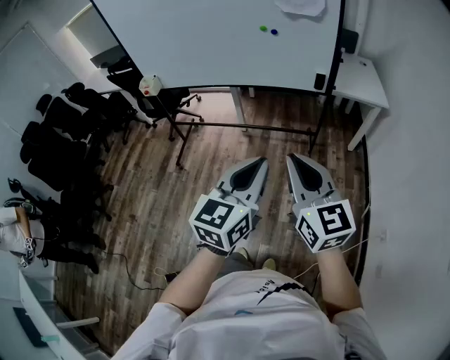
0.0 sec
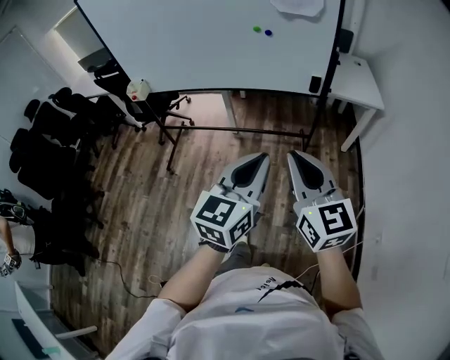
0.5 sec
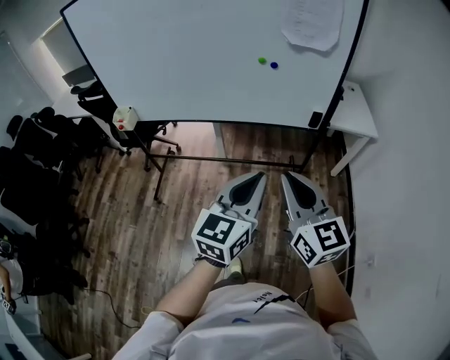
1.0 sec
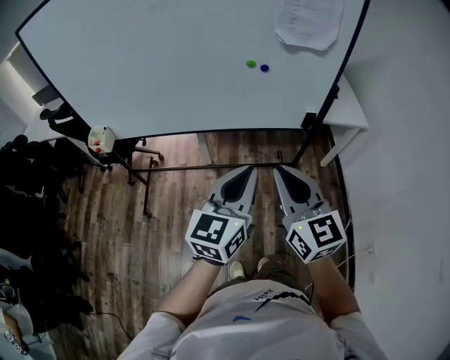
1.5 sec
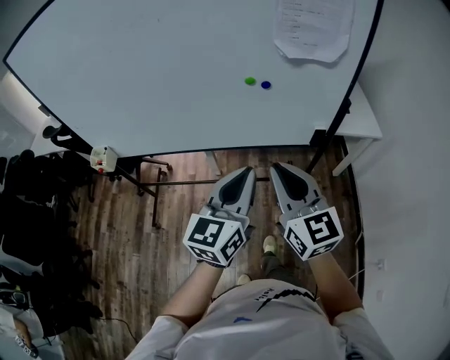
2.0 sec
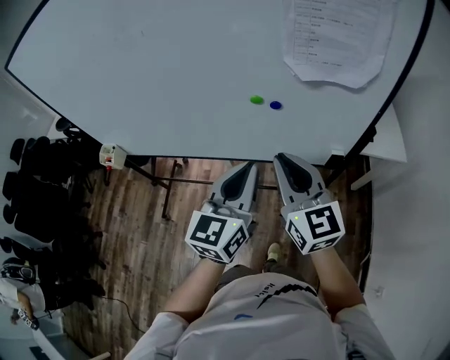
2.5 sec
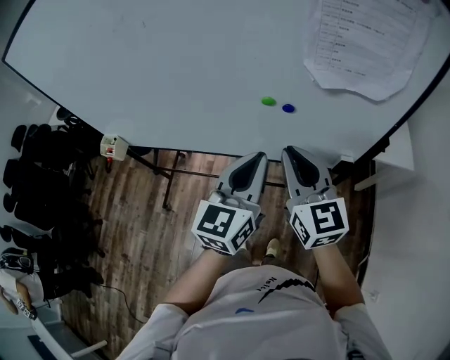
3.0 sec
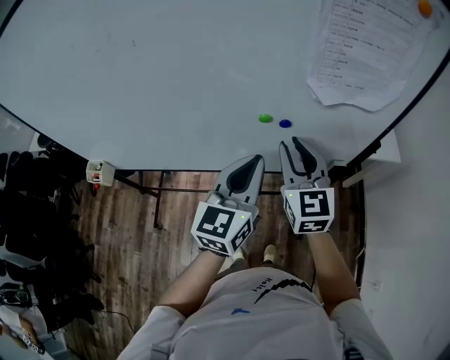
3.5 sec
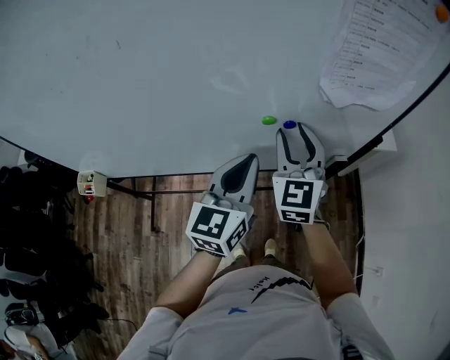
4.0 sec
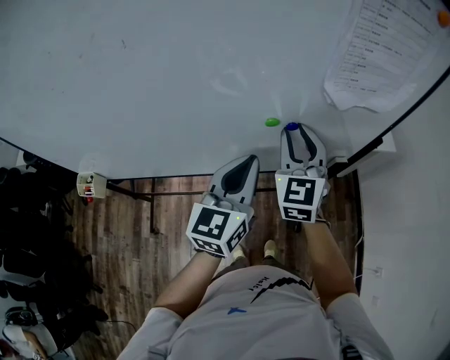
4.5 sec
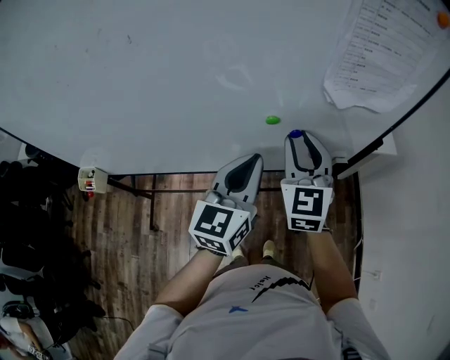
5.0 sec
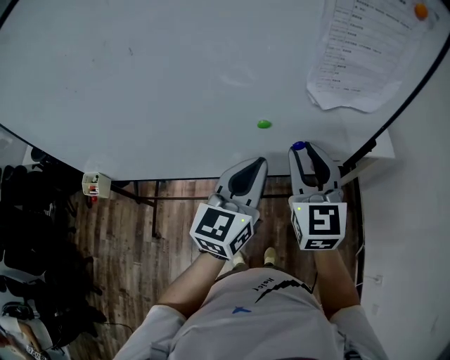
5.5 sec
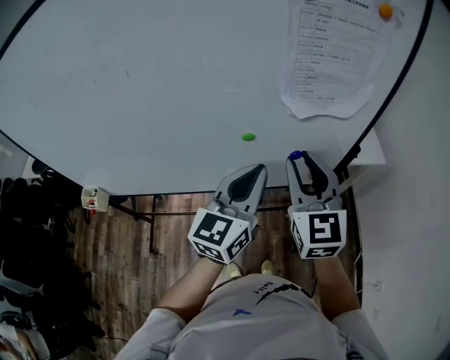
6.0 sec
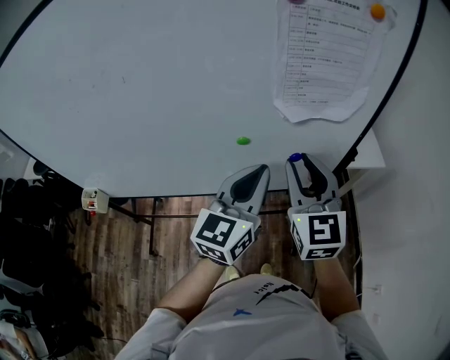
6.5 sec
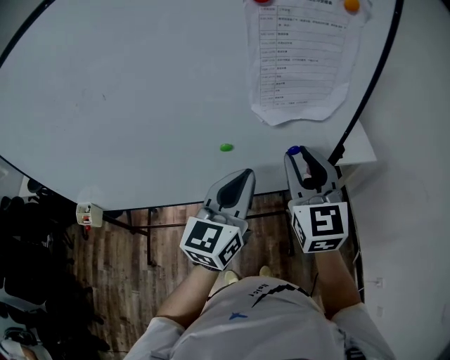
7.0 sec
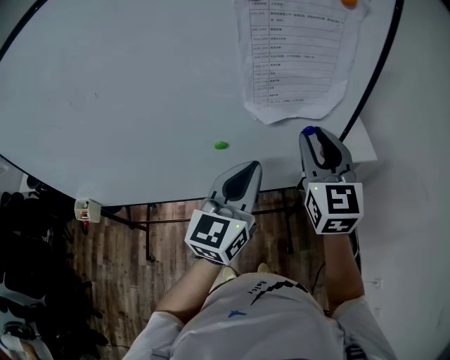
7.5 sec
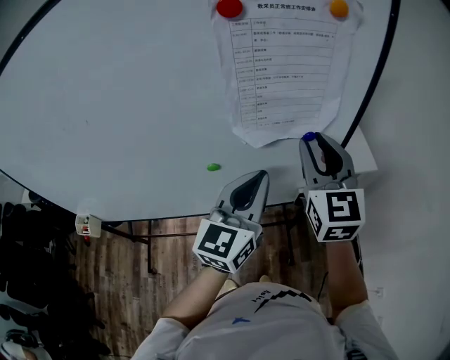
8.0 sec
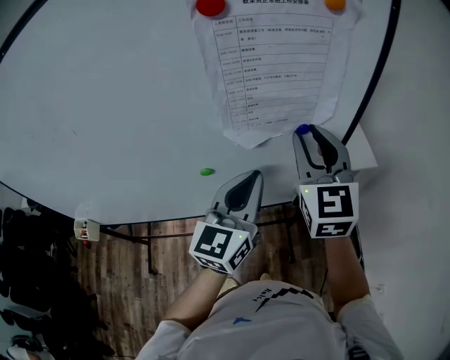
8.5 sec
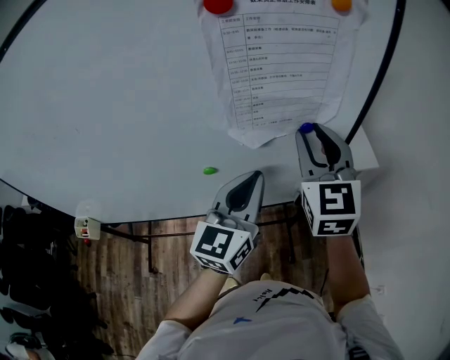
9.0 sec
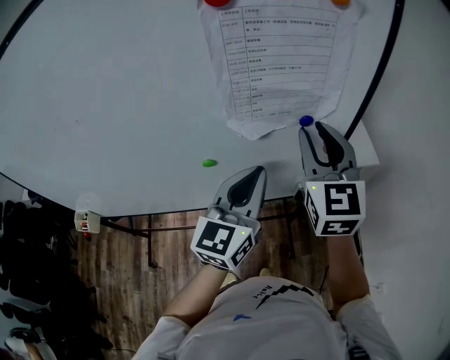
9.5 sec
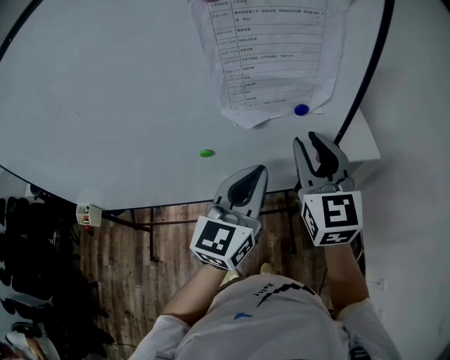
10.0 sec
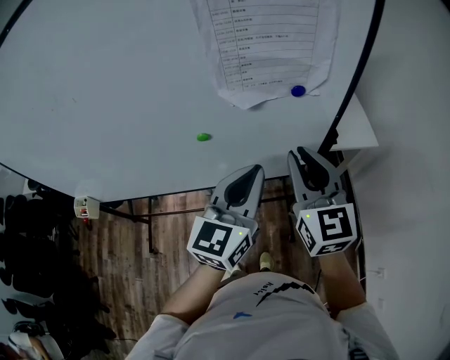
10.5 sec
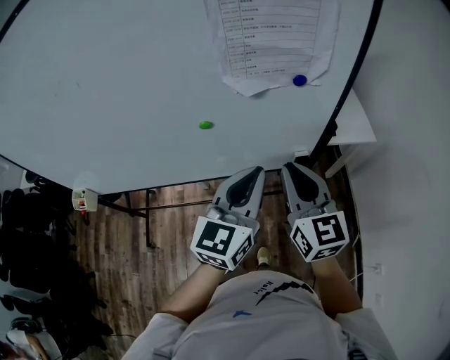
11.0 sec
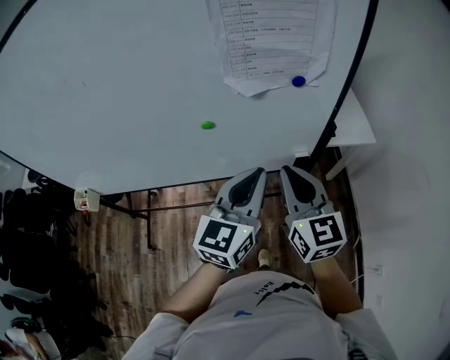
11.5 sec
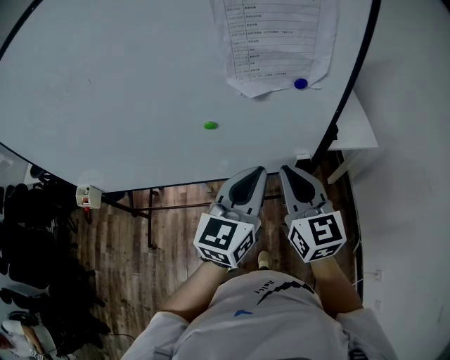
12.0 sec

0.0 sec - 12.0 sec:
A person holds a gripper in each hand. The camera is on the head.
0.0 sec - 2.0 sec: The two grippers go some 40 cm forward.
2.0 sec - 4.0 sec: The two grippers go approximately 25 cm forward. The right gripper turns by roughly 30 degrees, and opens its fingers.
4.0 sec - 6.0 sec: The left gripper is displaced to the right and upward by roughly 10 cm, while the right gripper heads upward, backward and to the right, covering about 15 cm.
6.0 sec - 8.0 sec: The right gripper is displaced to the right, forward and upward by about 15 cm. Meanwhile the left gripper shifts approximately 10 cm to the right and forward.
8.0 sec - 10.0 sec: The grippers make only small movements.
10.0 sec - 12.0 sec: The right gripper shifts approximately 15 cm backward and downward, and closes; the left gripper goes some 5 cm backward.

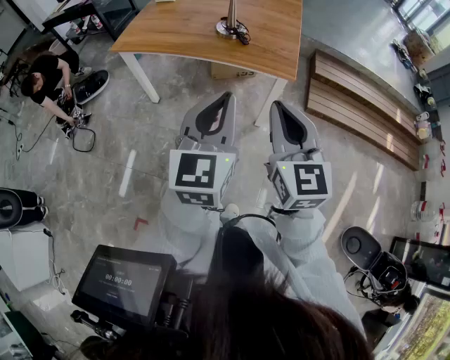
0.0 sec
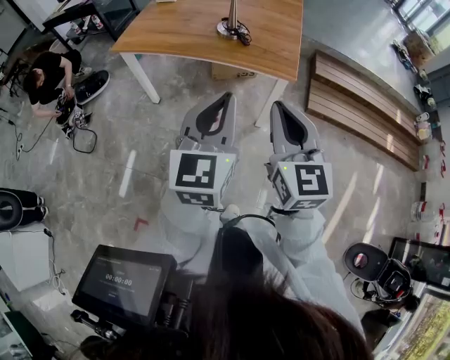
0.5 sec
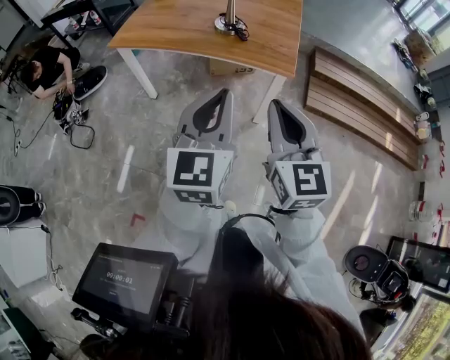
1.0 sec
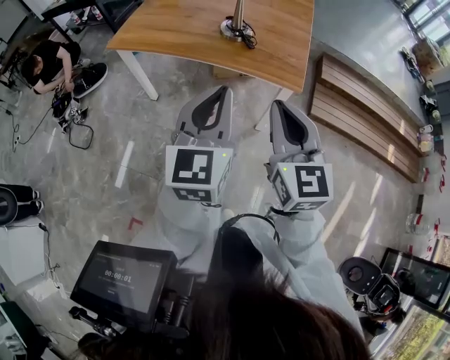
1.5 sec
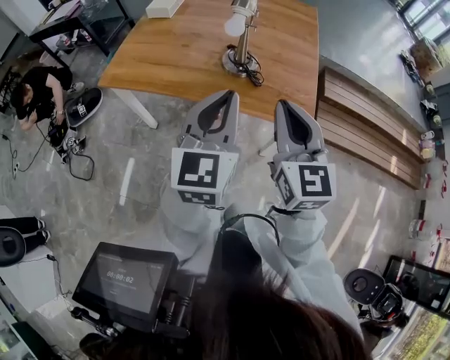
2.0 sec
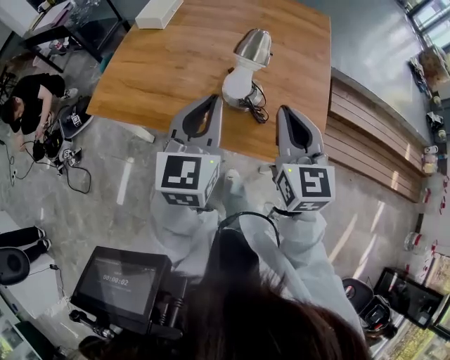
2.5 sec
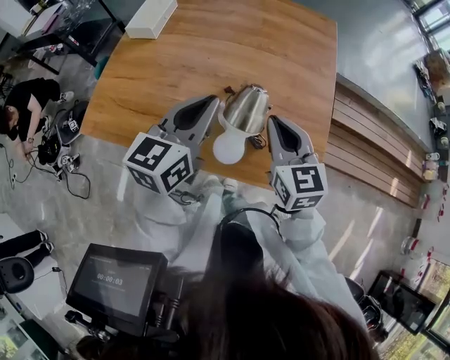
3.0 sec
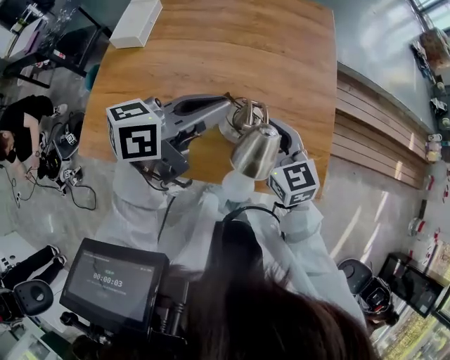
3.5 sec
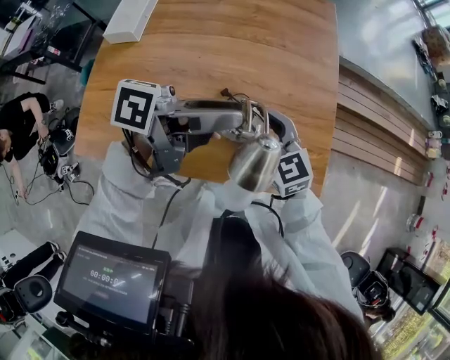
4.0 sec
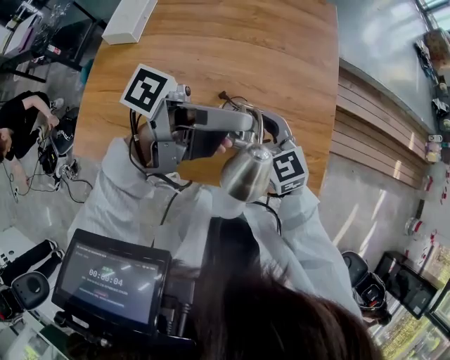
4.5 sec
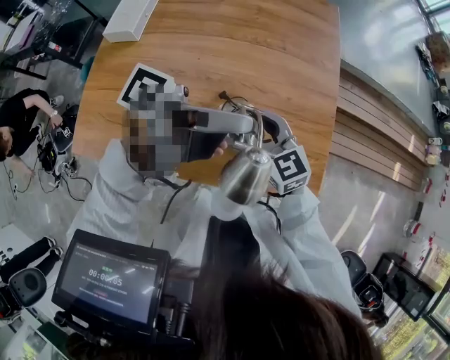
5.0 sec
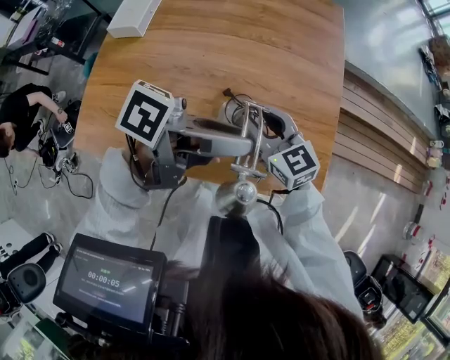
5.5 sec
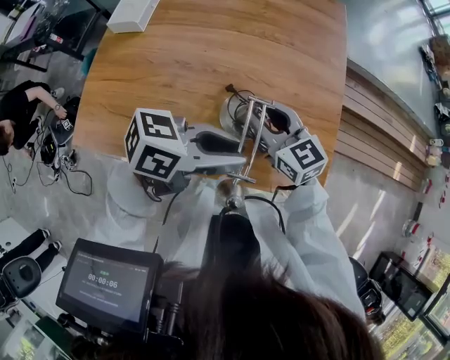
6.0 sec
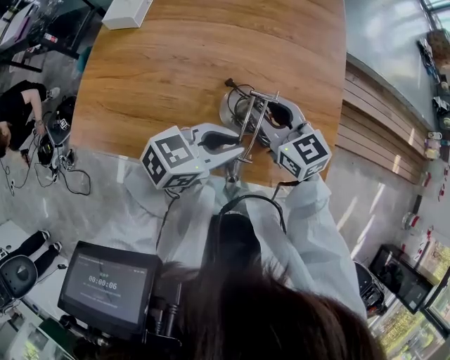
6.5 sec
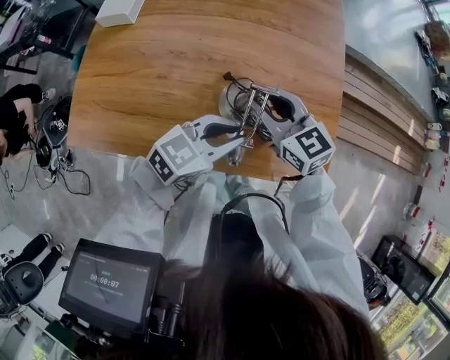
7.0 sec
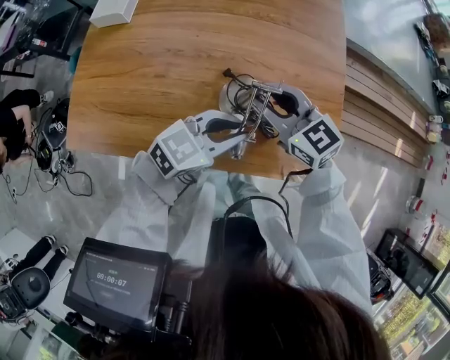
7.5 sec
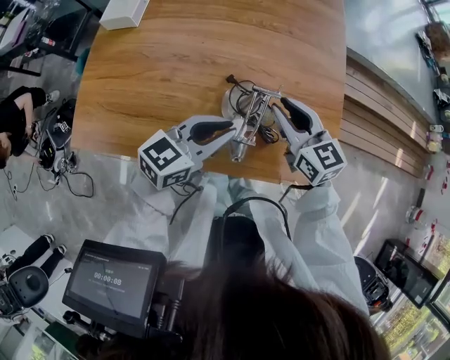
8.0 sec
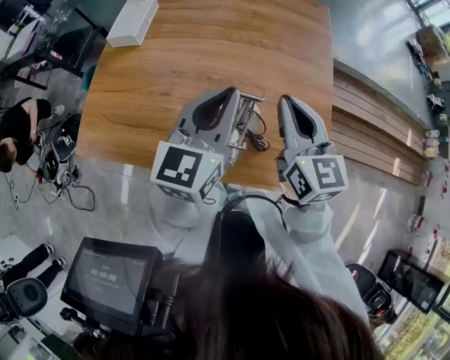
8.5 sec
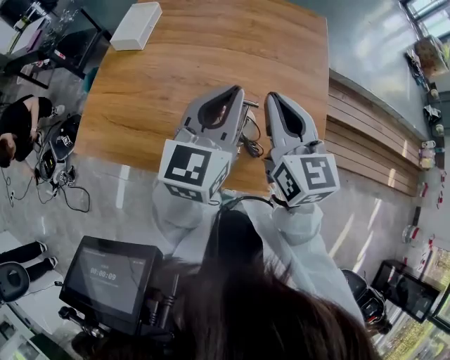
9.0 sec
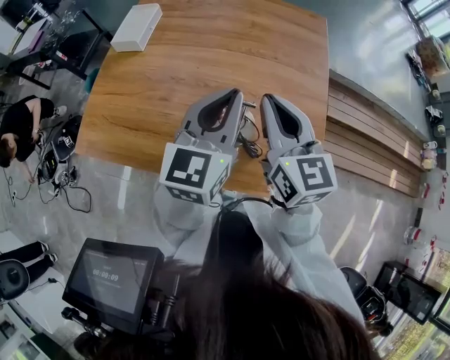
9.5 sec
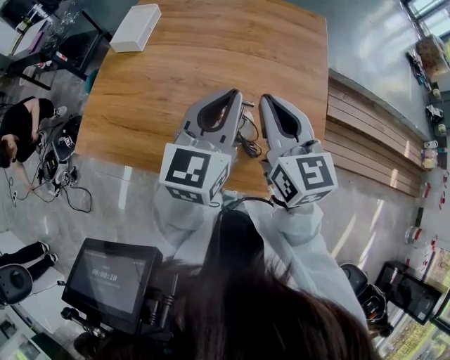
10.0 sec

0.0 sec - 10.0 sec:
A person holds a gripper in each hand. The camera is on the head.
0.0 sec - 2.0 sec: Both grippers move forward, about 30 cm.
2.0 sec - 4.0 sec: The left gripper ends up about 35 cm from where it was, swivels about 90 degrees, and opens its fingers; the right gripper changes place by approximately 40 cm, turns by some 20 degrees, and opens its fingers.
4.0 sec - 6.0 sec: The left gripper moves roughly 10 cm, changes its angle by approximately 30 degrees, and closes up.
6.0 sec - 8.0 sec: The right gripper ends up approximately 5 cm from where it was. The left gripper heads downward, covering some 5 cm, and swivels some 30 degrees.
8.0 sec - 10.0 sec: The left gripper shifts approximately 15 cm upward and forward, and changes its angle by approximately 40 degrees. The right gripper goes some 15 cm upward, and closes its fingers.

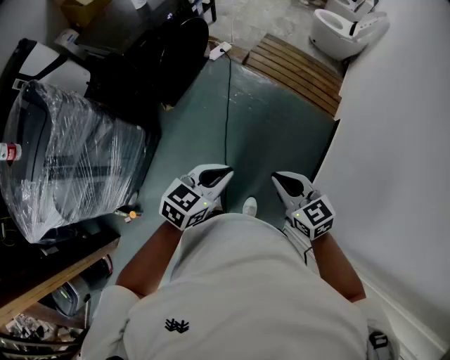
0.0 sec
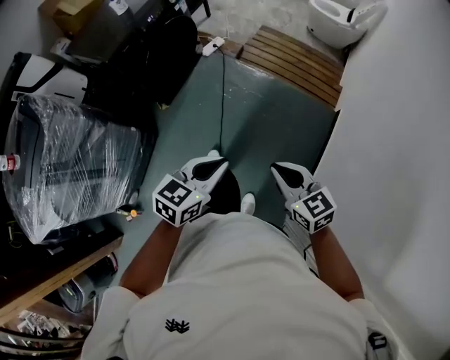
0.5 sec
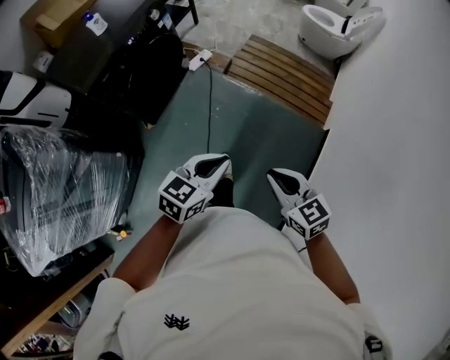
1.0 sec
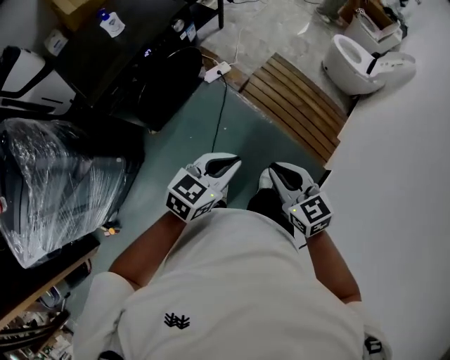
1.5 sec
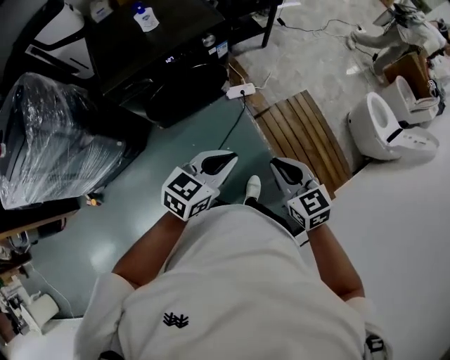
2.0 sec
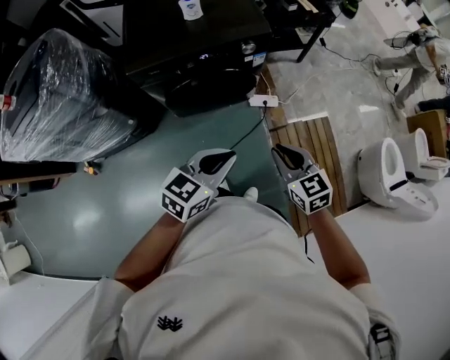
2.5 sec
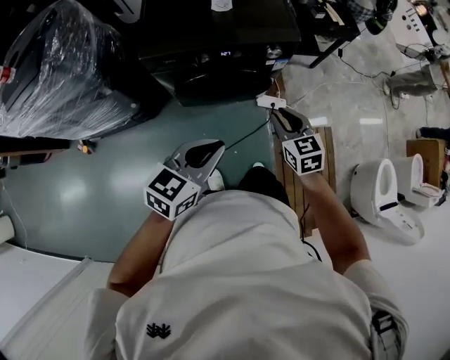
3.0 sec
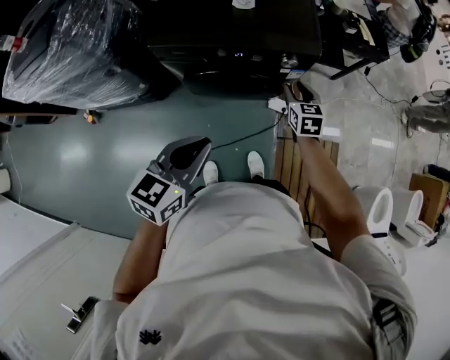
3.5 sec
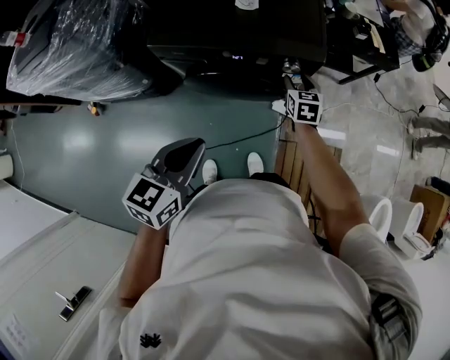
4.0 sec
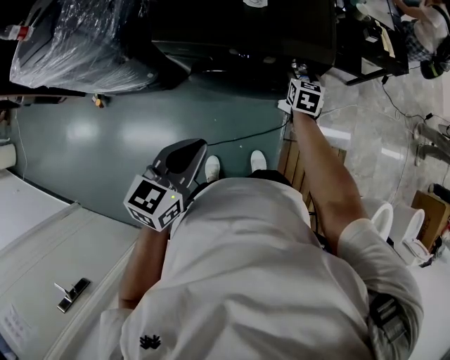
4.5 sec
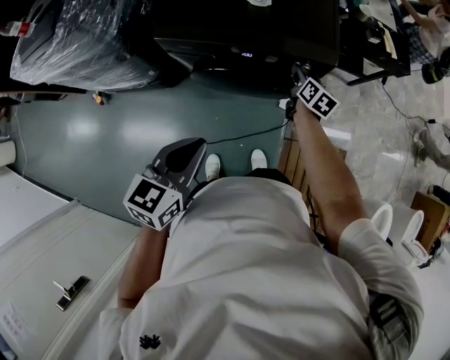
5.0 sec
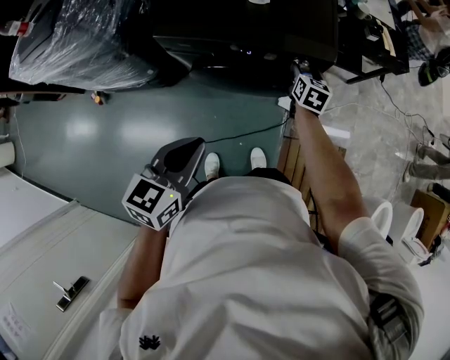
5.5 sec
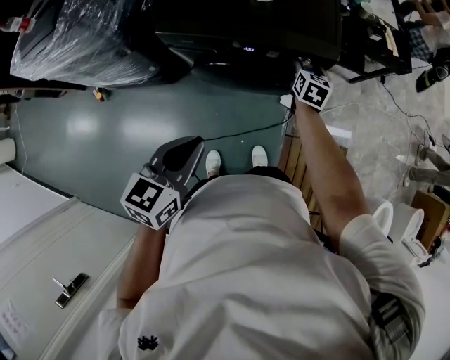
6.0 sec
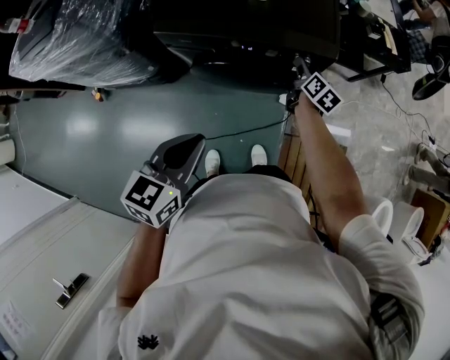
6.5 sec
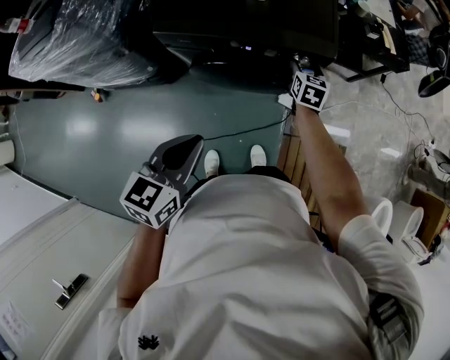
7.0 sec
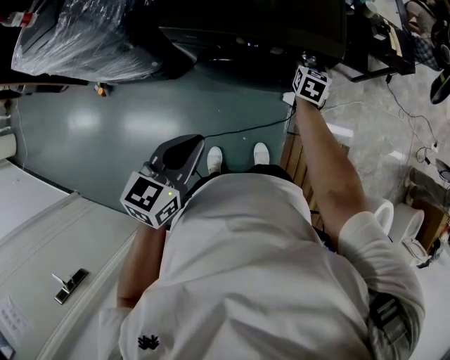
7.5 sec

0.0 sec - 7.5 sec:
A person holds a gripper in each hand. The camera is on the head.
0.0 sec - 2.0 sec: Both grippers are carried approximately 60 cm. The left gripper swivels about 30 degrees, while the right gripper changes its angle by about 30 degrees.
2.0 sec - 4.0 sec: The left gripper shifts by roughly 20 cm, and turns by about 50 degrees. The right gripper changes place by about 60 cm, and opens.
